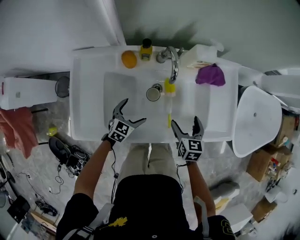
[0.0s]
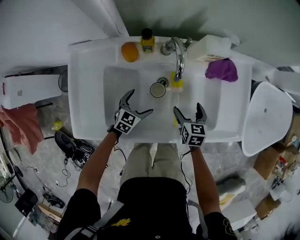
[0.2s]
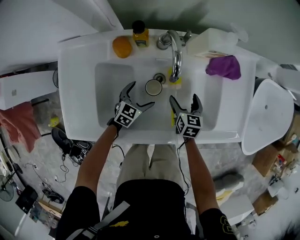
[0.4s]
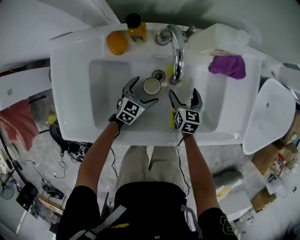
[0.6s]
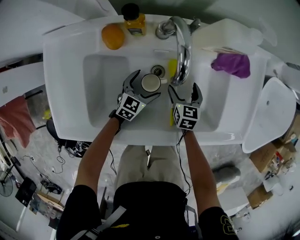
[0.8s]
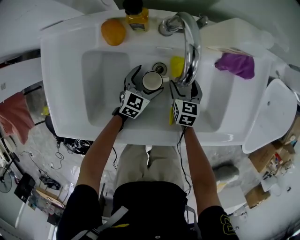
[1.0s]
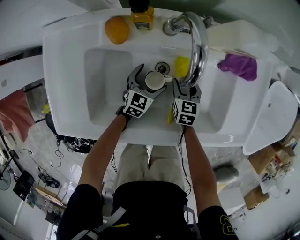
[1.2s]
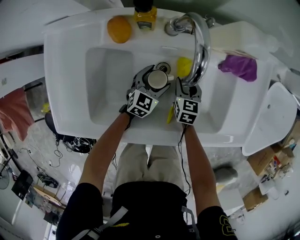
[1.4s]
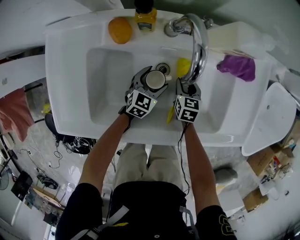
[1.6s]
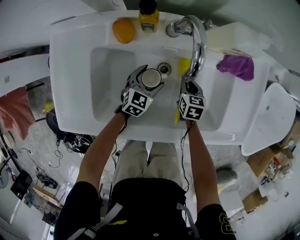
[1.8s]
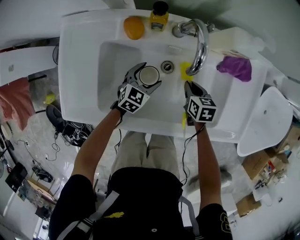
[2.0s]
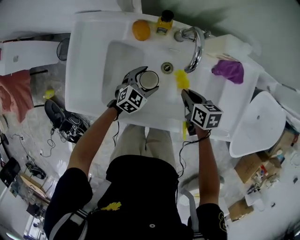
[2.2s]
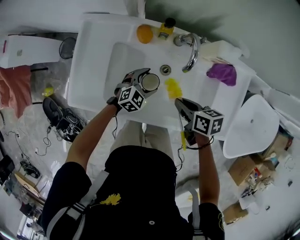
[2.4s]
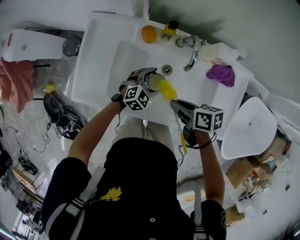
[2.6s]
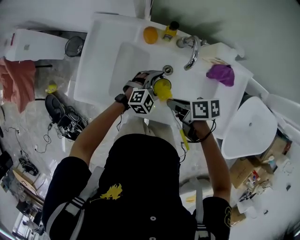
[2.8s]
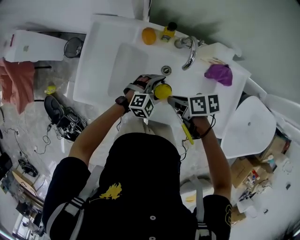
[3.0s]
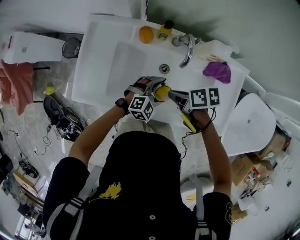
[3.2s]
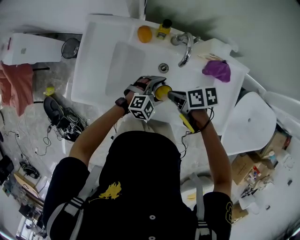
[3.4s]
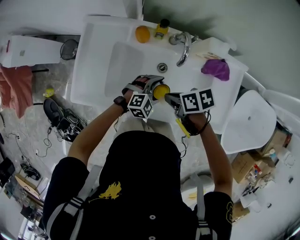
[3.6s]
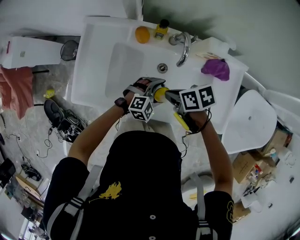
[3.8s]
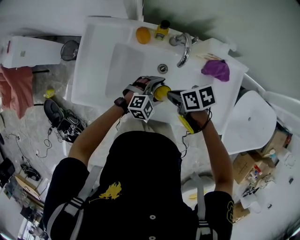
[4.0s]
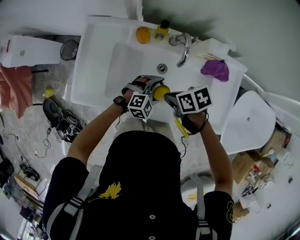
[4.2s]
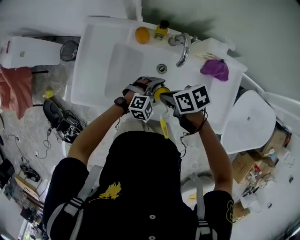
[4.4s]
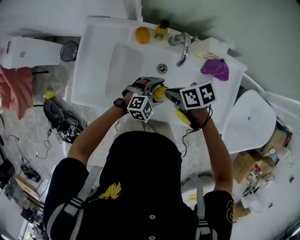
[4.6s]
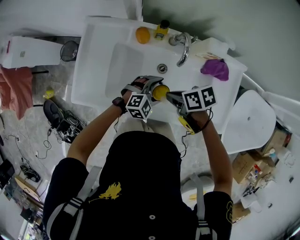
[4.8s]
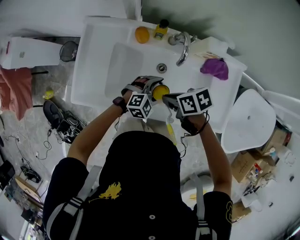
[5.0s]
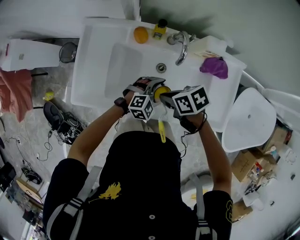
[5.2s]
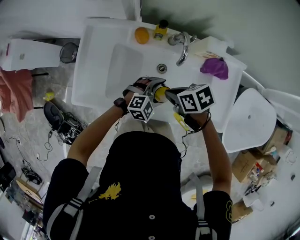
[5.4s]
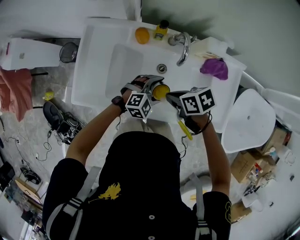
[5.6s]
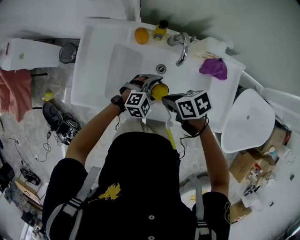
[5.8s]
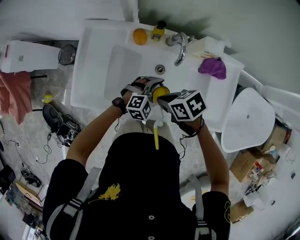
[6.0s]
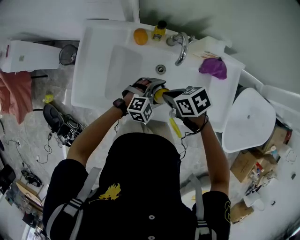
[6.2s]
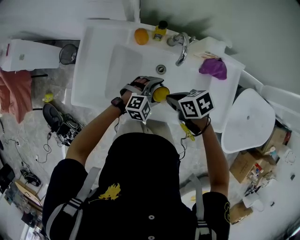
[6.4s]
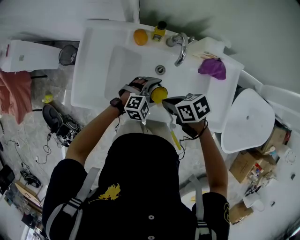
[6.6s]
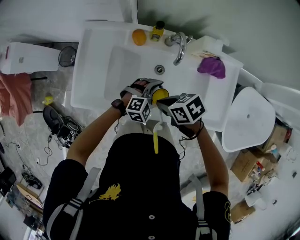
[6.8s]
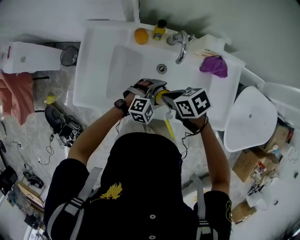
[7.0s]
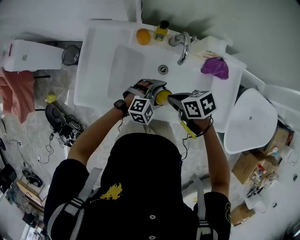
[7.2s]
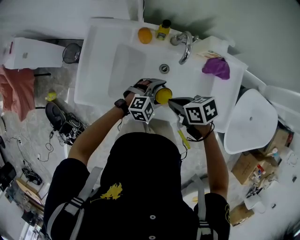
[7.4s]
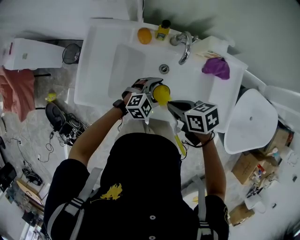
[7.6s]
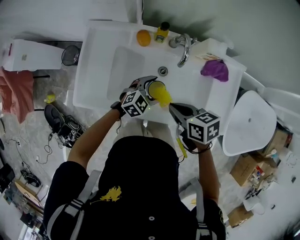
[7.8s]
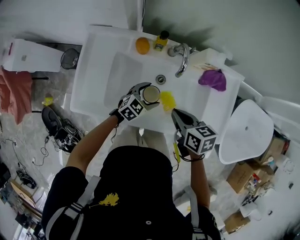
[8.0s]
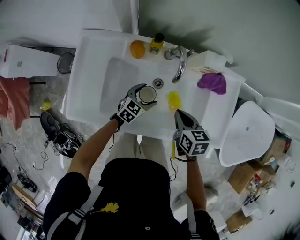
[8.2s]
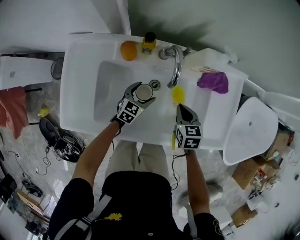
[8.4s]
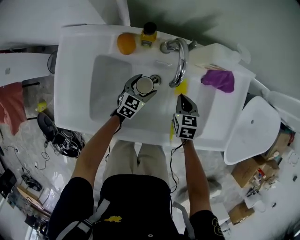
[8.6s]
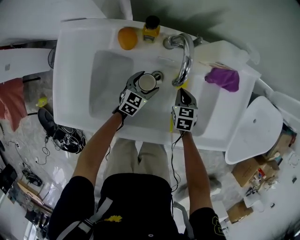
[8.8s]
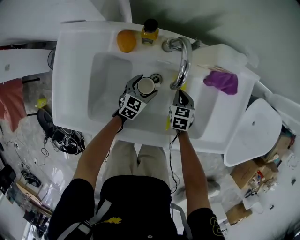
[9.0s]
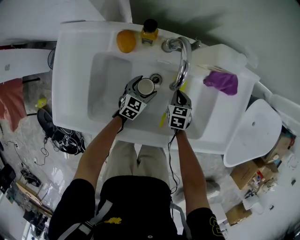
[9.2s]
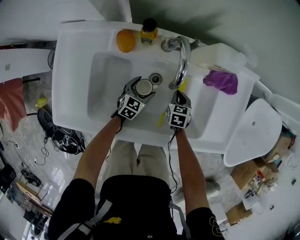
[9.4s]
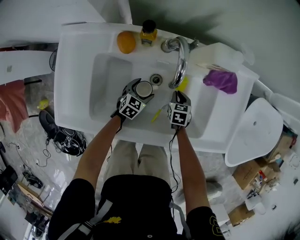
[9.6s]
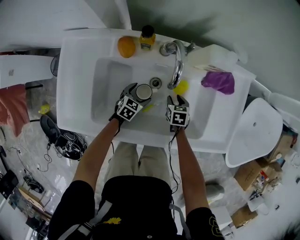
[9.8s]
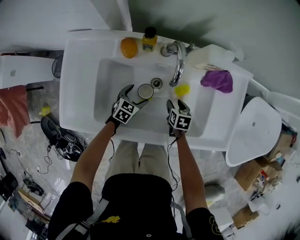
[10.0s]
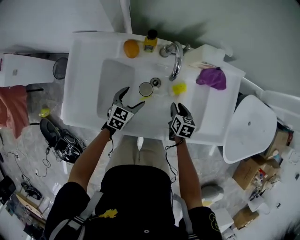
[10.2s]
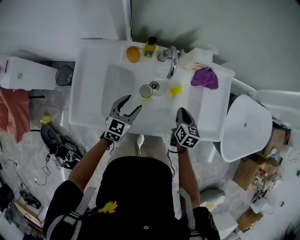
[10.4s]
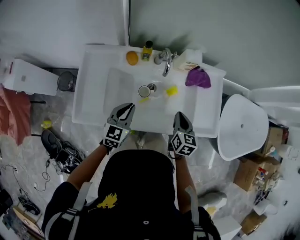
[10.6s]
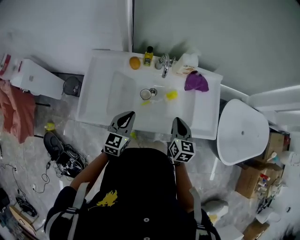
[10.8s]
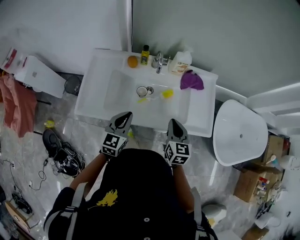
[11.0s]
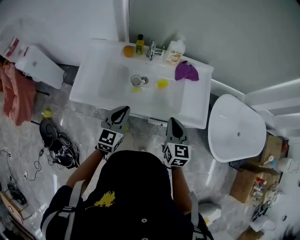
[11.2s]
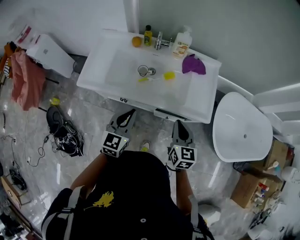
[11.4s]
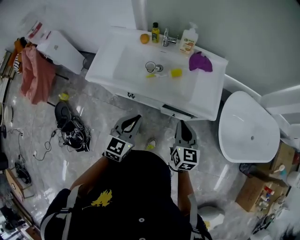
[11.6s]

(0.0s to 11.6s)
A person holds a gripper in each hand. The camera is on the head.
0.0s - 1.4s: The left gripper heads forward, downward and to the right, covering roughly 20 cm; the right gripper heads downward and forward, covering some 25 cm, and closes its fingers.
1.4s - 2.8s: The grippers both shift upward by some 25 cm. The left gripper changes its angle by some 30 degrees. Meanwhile the right gripper turns by approximately 60 degrees.
2.8s - 4.4s: The left gripper changes place by some 5 cm; the right gripper swivels about 20 degrees.
4.4s - 7.2s: The grippers move only a little.
7.2s - 8.8s: The two grippers go approximately 20 cm downward. The right gripper rotates some 50 degrees. Meanwhile the left gripper rolls counterclockwise, seen from behind, by roughly 50 degrees.
8.8s - 10.2s: The left gripper moves upward, backward and to the left, approximately 15 cm, while the right gripper shifts about 10 cm backward and upward, and turns by about 20 degrees.
10.2s - 11.6s: Both grippers move backward, upward and to the right, about 50 cm. The left gripper rotates about 20 degrees, and closes up. The right gripper rotates approximately 30 degrees.

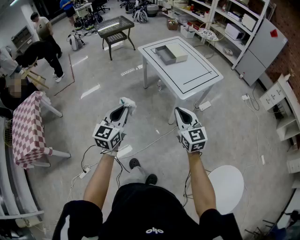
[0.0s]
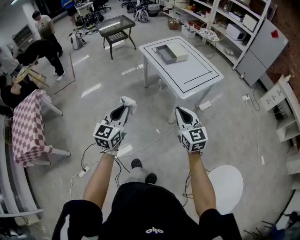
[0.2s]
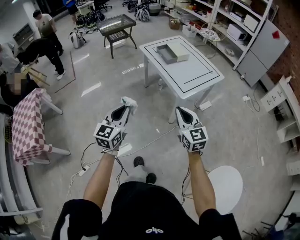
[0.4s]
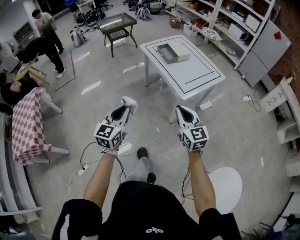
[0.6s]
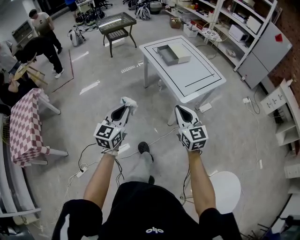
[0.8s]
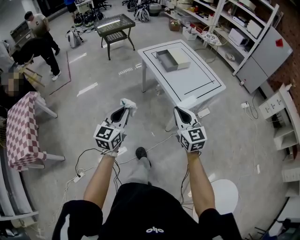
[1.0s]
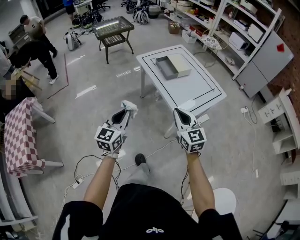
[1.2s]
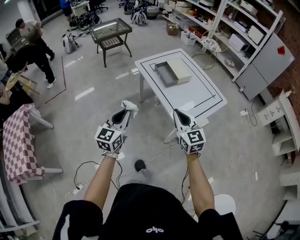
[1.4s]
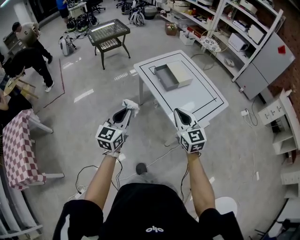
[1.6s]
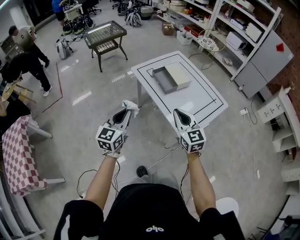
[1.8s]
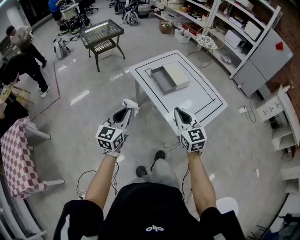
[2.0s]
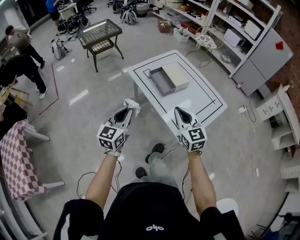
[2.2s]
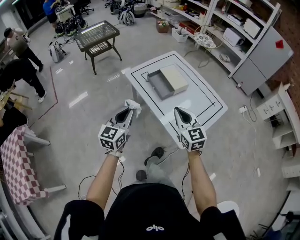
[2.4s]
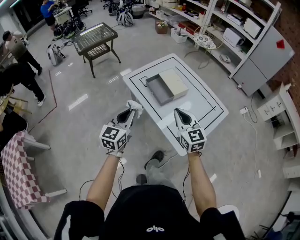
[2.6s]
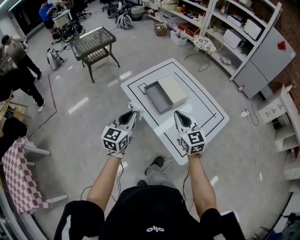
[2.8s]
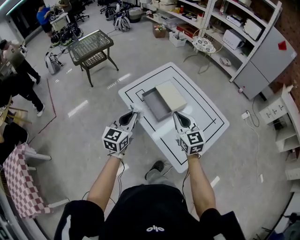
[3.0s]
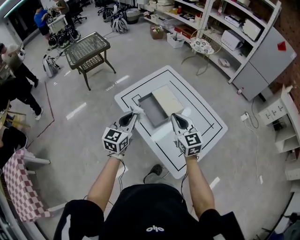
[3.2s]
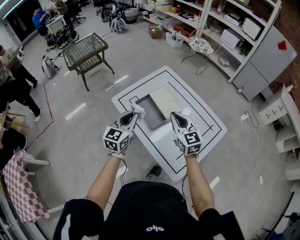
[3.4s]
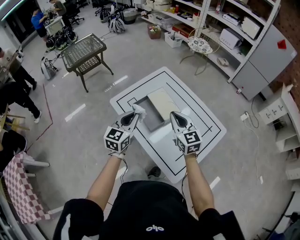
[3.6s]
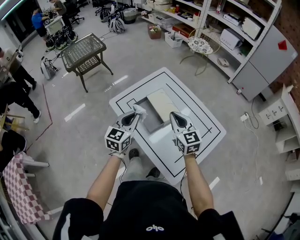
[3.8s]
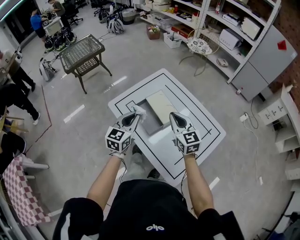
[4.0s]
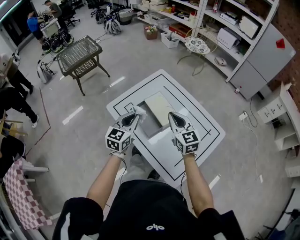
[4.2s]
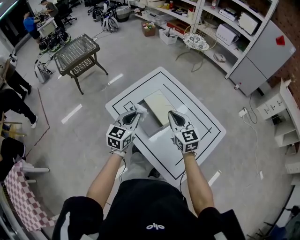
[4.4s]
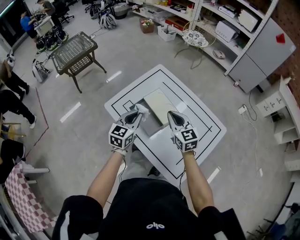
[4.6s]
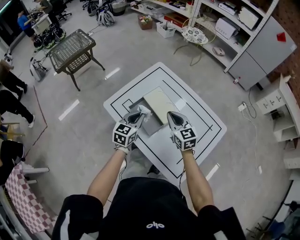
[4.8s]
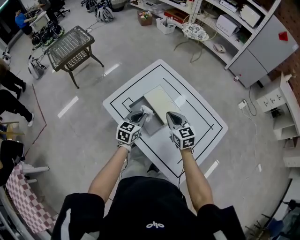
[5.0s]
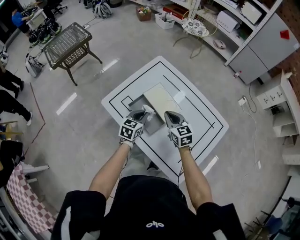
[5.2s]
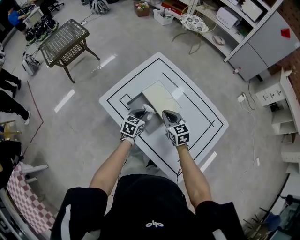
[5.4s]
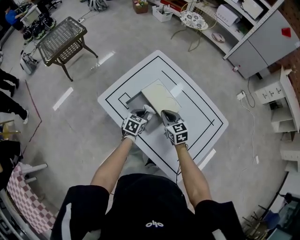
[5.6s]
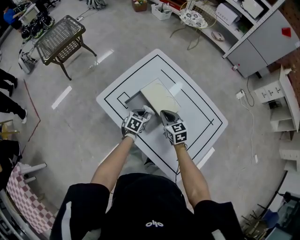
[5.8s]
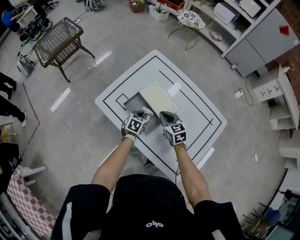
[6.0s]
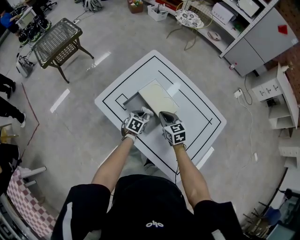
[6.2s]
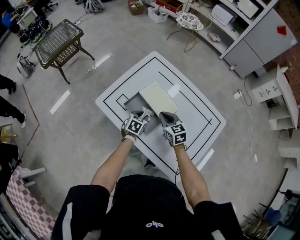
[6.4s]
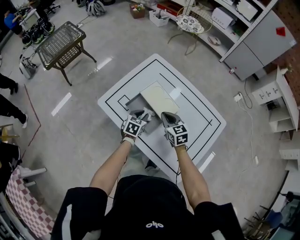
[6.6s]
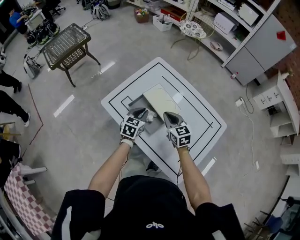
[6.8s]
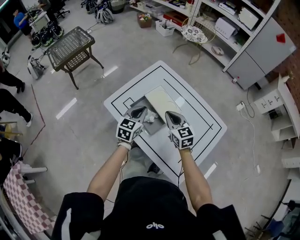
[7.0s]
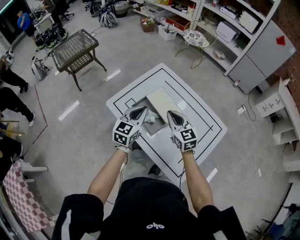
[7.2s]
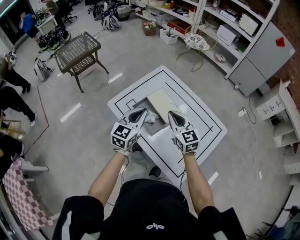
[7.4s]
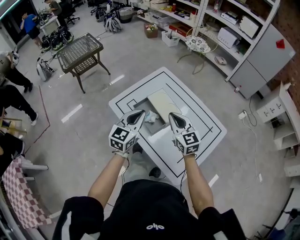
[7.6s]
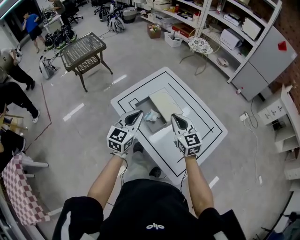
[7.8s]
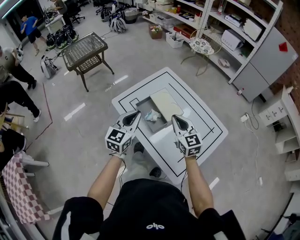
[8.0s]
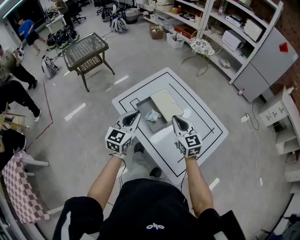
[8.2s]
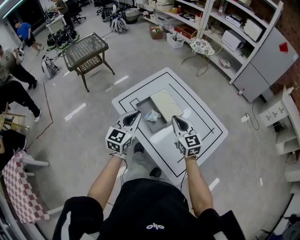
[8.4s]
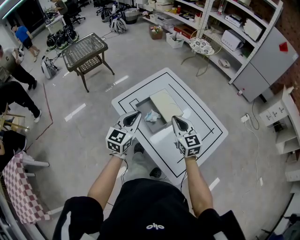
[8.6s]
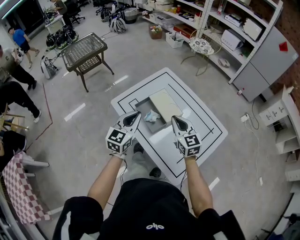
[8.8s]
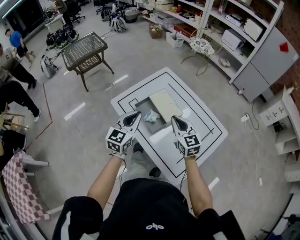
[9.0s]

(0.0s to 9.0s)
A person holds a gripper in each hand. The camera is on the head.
0.0s - 1.6s: Both grippers travel together forward, roughly 35 cm.
1.6s - 3.0s: The two grippers go roughly 30 cm forward.
3.0s - 4.4s: The right gripper moves forward, approximately 15 cm. Meanwhile the left gripper heads forward and to the right, covering about 15 cm.
4.4s - 6.0s: The two grippers go about 25 cm downward. The right gripper swivels approximately 20 degrees. The left gripper angles its fingers downward, by about 40 degrees.
6.0s - 7.6s: The right gripper shifts roughly 20 cm upward and backward, and turns by approximately 20 degrees. The left gripper goes roughly 30 cm upward, and tips its fingers upward by some 40 degrees.
7.6s - 9.0s: The grippers make only small movements.

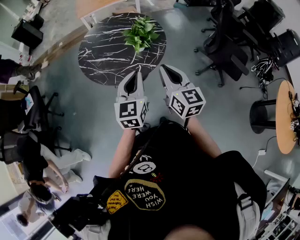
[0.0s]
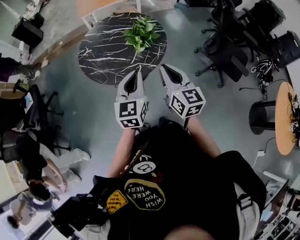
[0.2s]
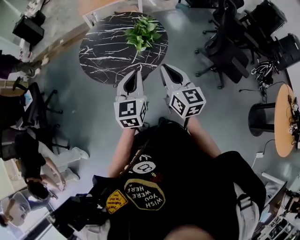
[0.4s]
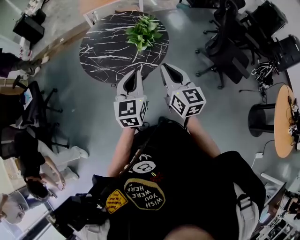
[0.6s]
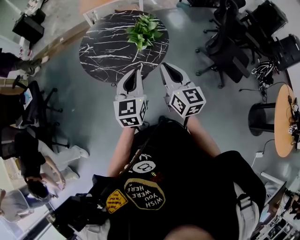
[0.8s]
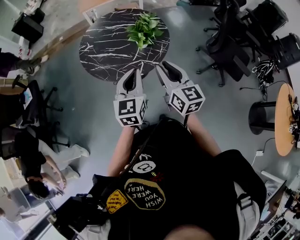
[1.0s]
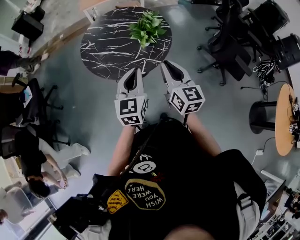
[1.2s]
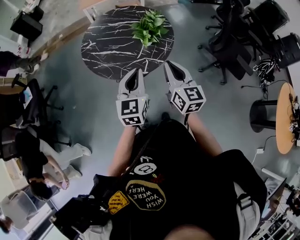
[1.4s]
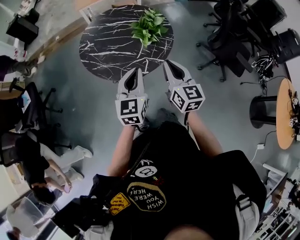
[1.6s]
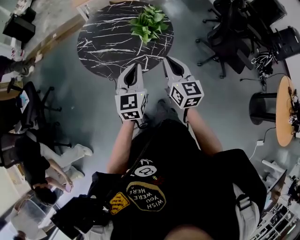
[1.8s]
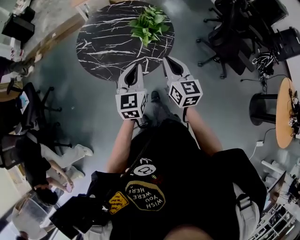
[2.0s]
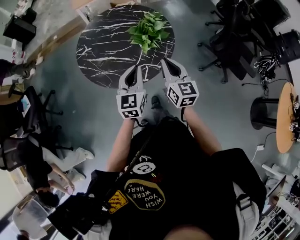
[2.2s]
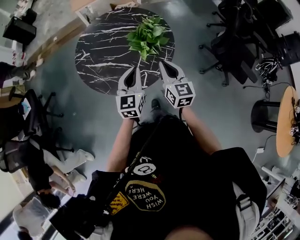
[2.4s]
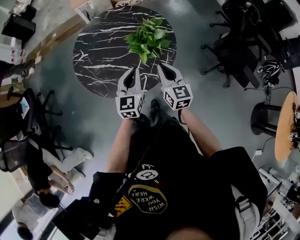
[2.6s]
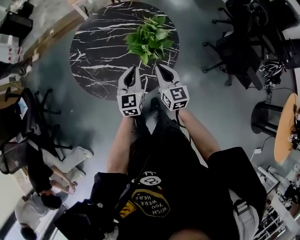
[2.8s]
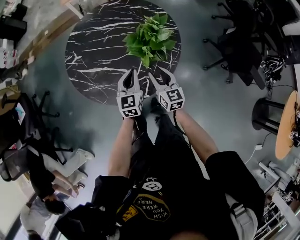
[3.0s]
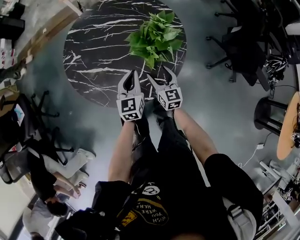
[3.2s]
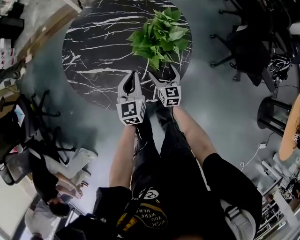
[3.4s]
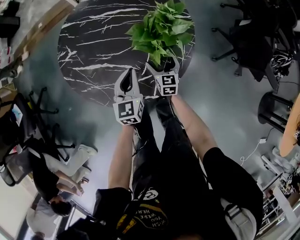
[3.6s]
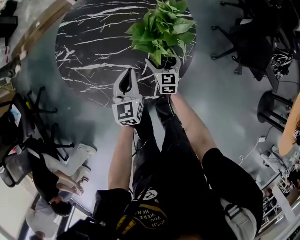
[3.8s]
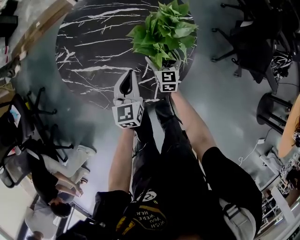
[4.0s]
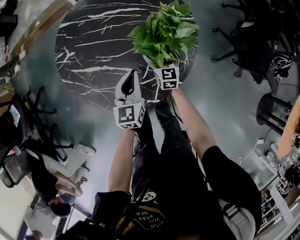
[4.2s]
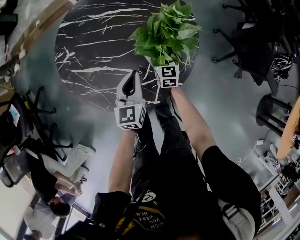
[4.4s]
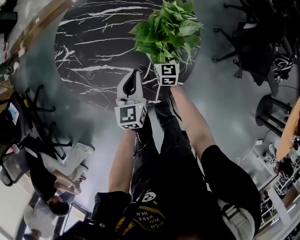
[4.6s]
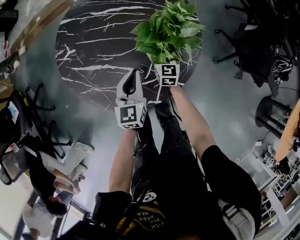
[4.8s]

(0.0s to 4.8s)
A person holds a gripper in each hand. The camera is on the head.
0.0s - 1.6s: The left gripper shifts roughly 5 cm to the left, while the right gripper moves about 10 cm.
1.6s - 3.2s: The left gripper moves forward and downward, some 35 cm; the right gripper travels downward and forward by about 40 cm, and opens.
3.2s - 4.8s: The right gripper goes approximately 15 cm forward and downward, and opens.
